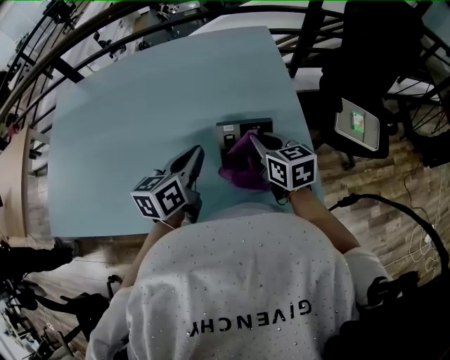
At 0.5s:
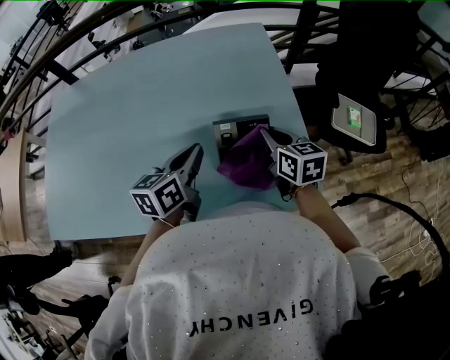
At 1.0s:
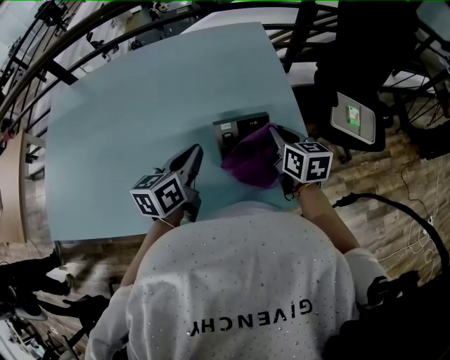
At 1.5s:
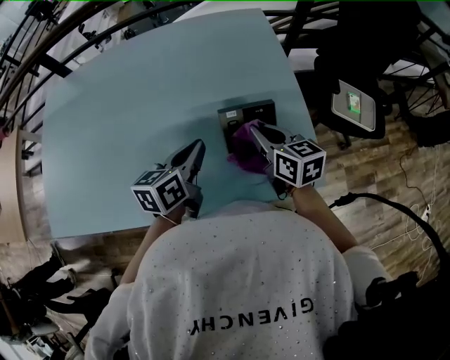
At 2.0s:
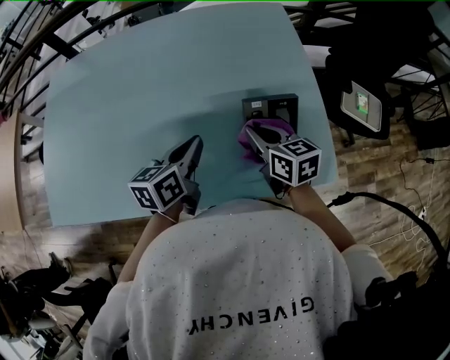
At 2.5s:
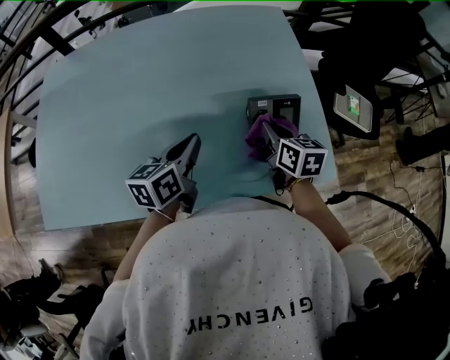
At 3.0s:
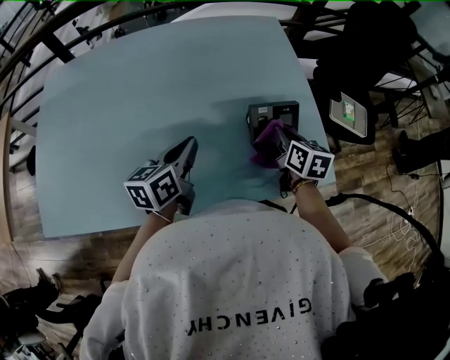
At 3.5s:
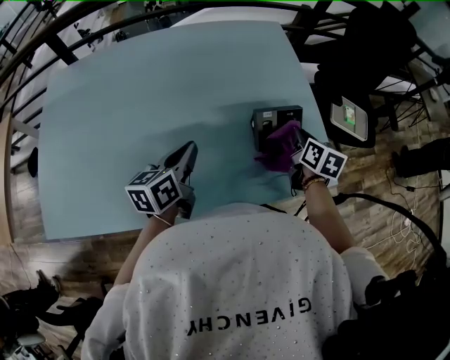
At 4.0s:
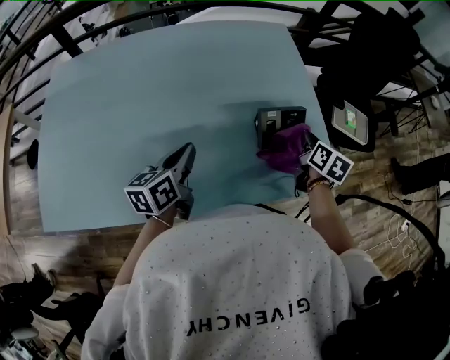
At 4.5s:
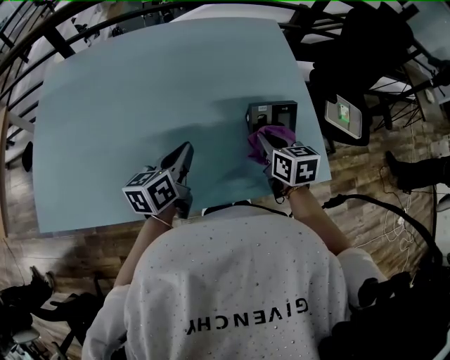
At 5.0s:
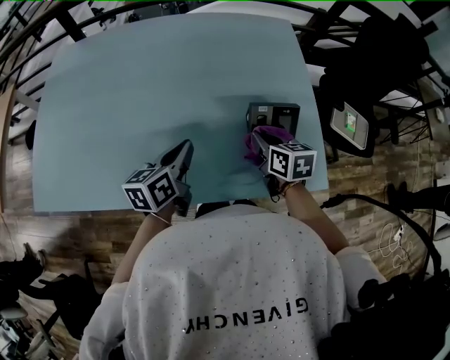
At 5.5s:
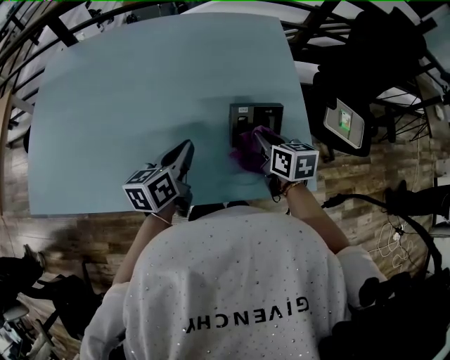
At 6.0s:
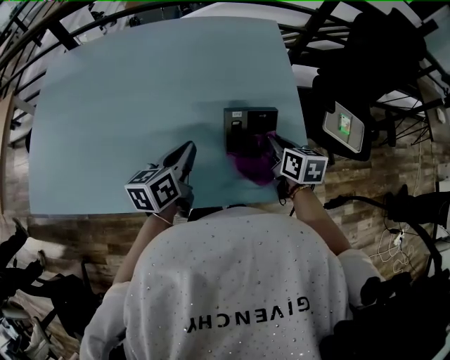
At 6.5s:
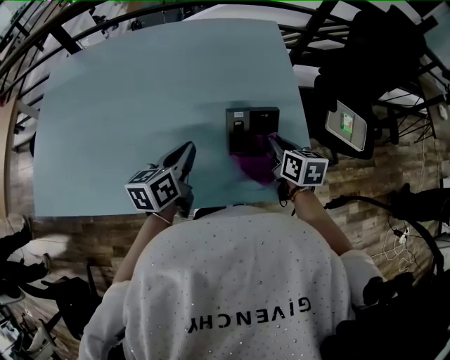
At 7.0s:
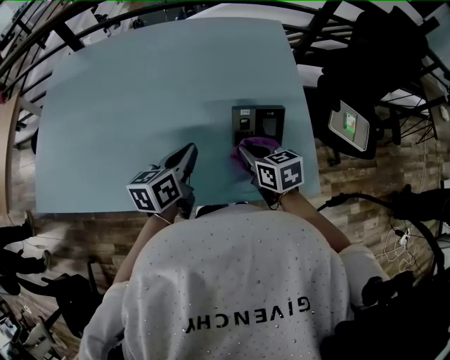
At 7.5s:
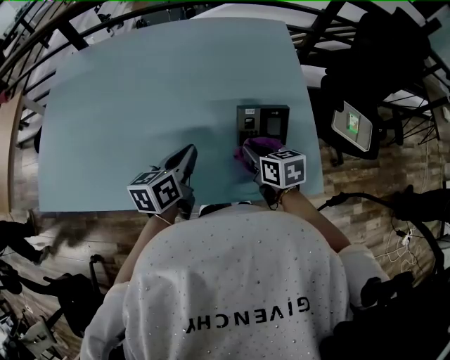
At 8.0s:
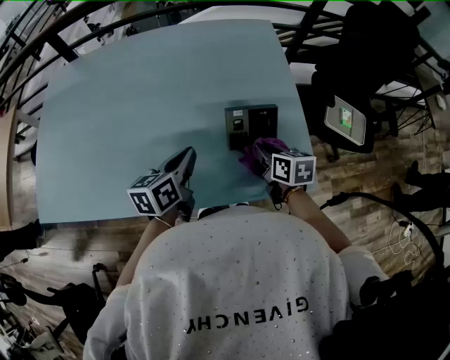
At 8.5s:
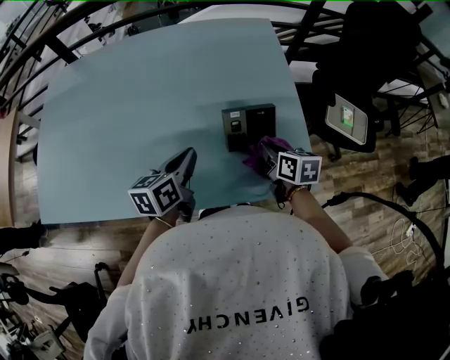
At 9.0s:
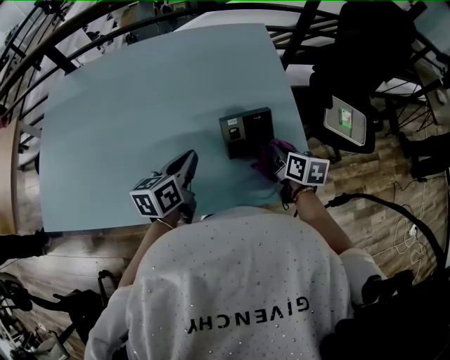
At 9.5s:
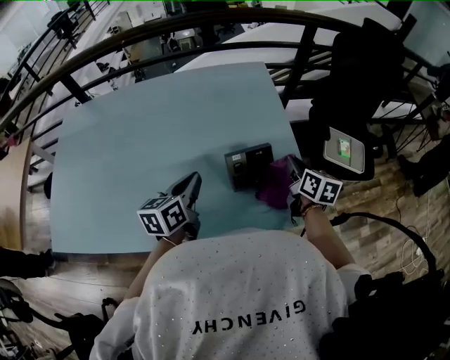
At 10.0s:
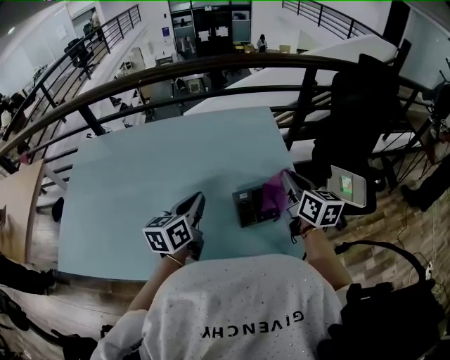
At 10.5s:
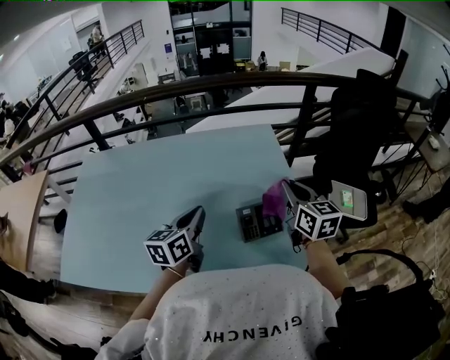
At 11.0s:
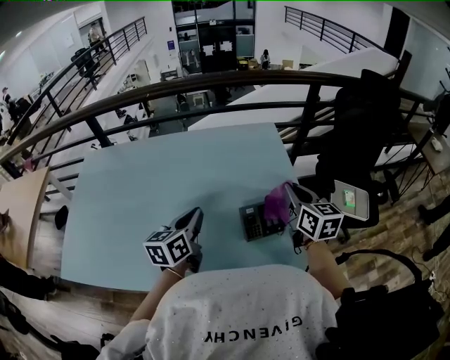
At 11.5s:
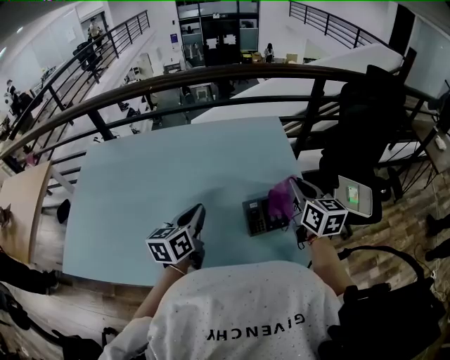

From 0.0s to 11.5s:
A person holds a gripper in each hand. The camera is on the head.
From 0.0s to 2.0s: Both grippers travel together to the left, roughly 10 cm.
From 2.0s to 4.0s: The right gripper goes some 15 cm to the right, and rotates approximately 40 degrees. The left gripper is displaced to the left by approximately 10 cm.
From 4.0s to 6.0s: The right gripper goes to the left and returns, about 15 cm each way, and swivels some 30 degrees. Meanwhile the left gripper heads to the right, covering approximately 10 cm.
From 6.0s to 7.5s: The right gripper heads to the left, covering some 10 cm.
From 7.5s to 9.5s: The right gripper goes approximately 20 cm to the right, and turns by approximately 30 degrees; the left gripper moves some 5 cm.
From 9.5s to 11.5s: The right gripper shifts approximately 15 cm upward and to the left, and rotates approximately 20 degrees. The left gripper ends up some 5 cm from where it was.

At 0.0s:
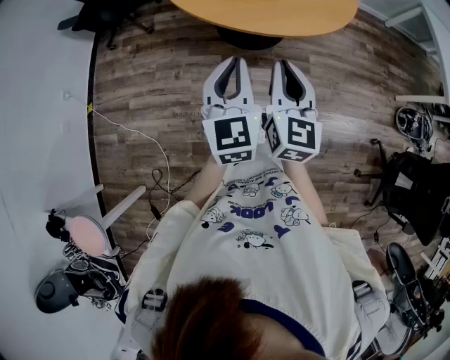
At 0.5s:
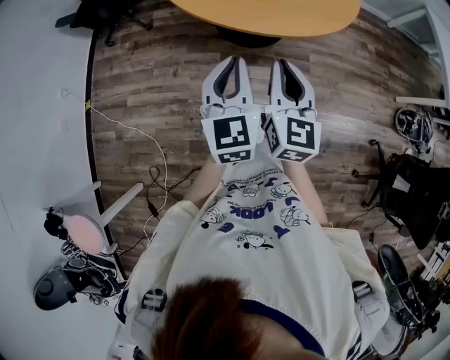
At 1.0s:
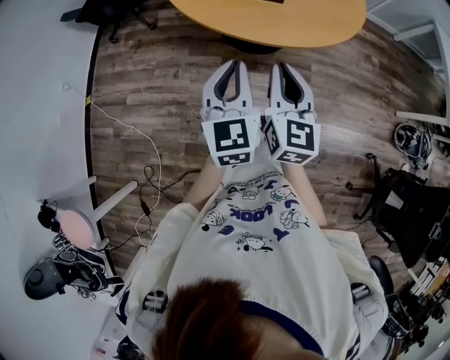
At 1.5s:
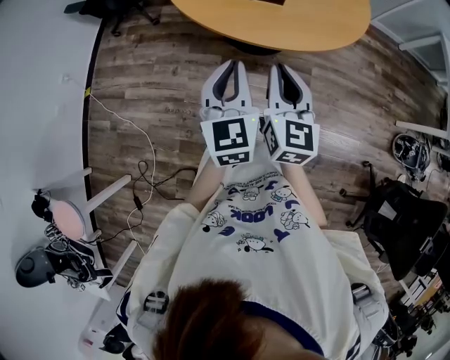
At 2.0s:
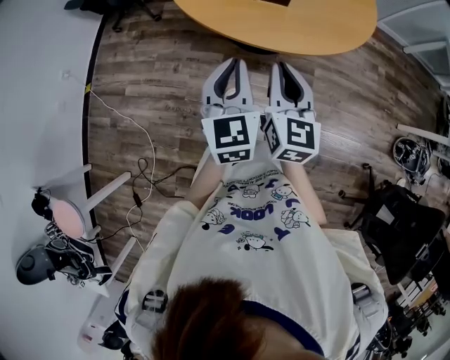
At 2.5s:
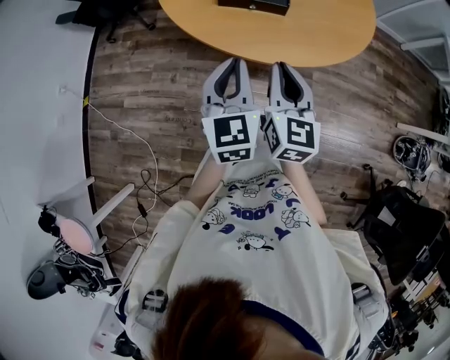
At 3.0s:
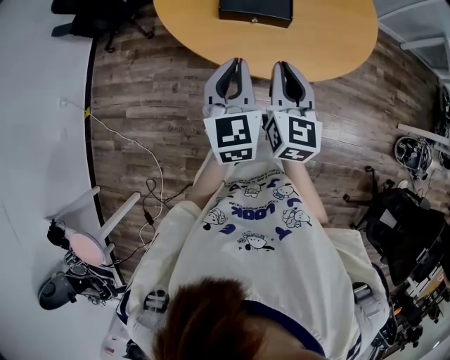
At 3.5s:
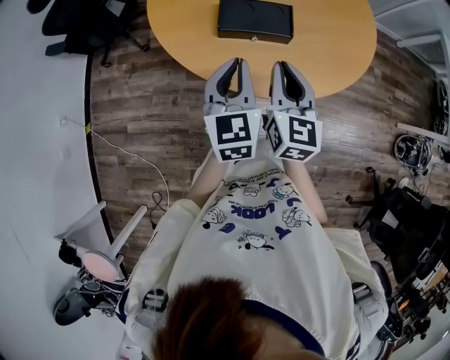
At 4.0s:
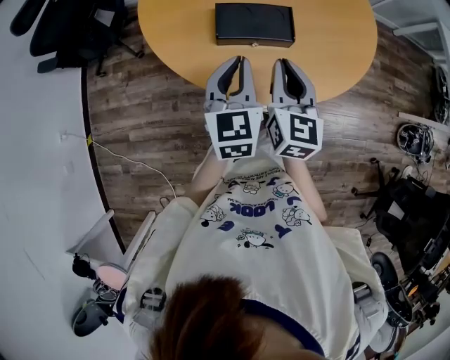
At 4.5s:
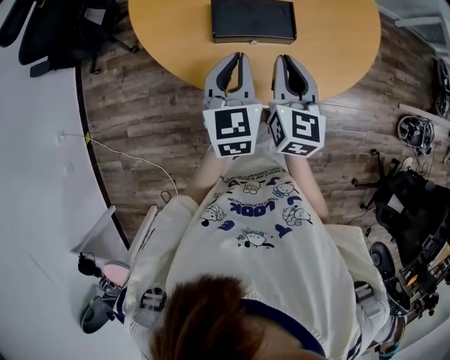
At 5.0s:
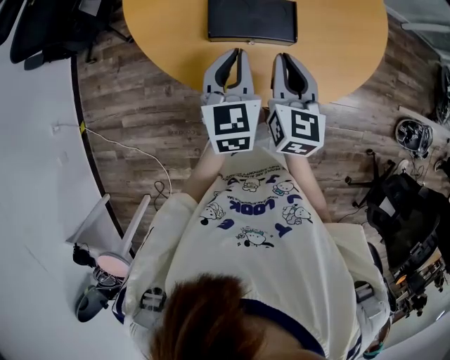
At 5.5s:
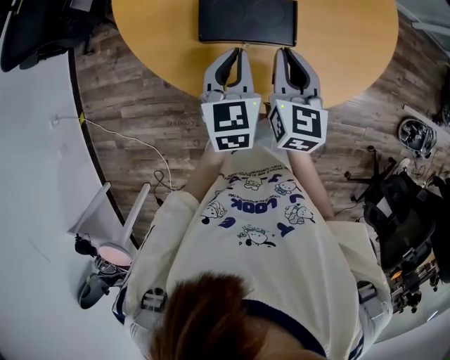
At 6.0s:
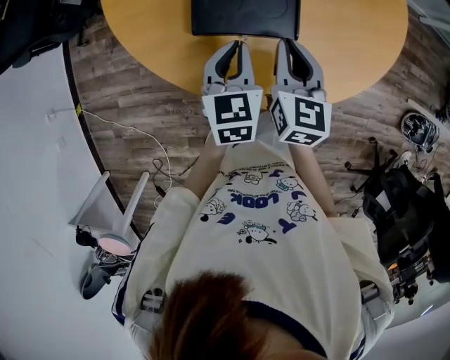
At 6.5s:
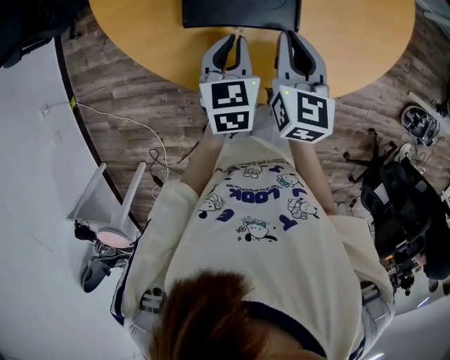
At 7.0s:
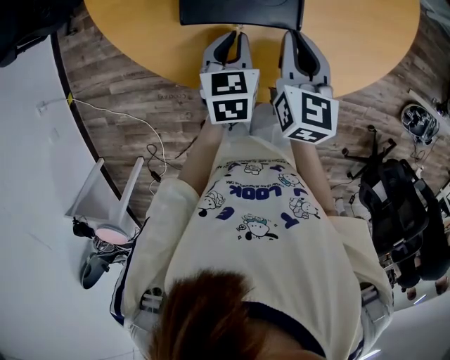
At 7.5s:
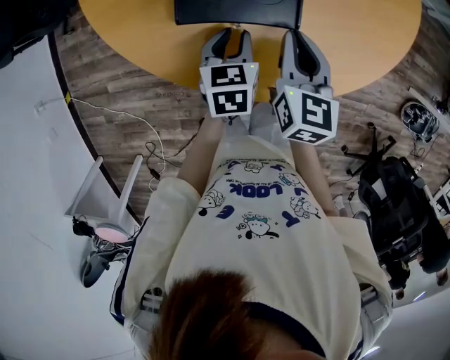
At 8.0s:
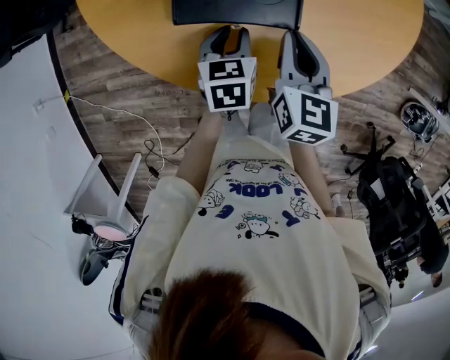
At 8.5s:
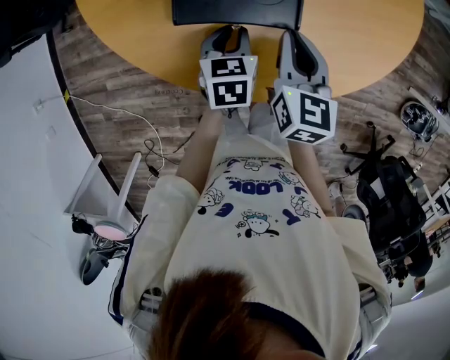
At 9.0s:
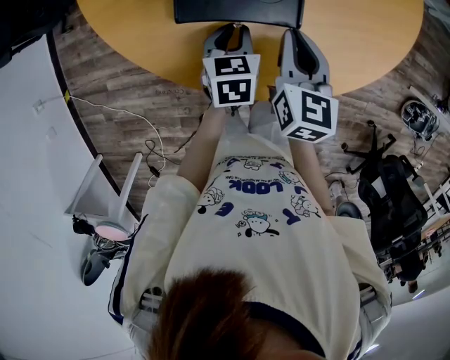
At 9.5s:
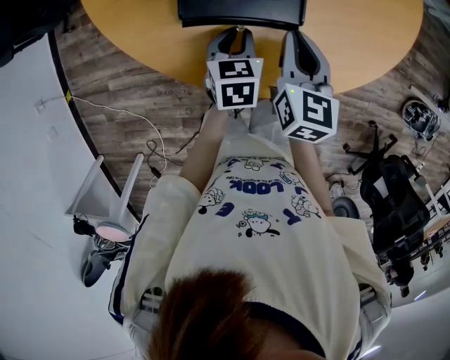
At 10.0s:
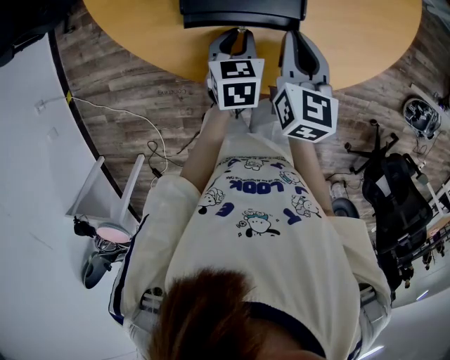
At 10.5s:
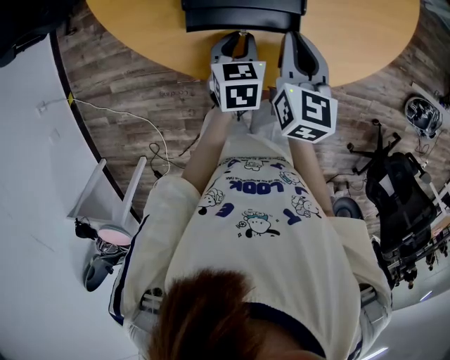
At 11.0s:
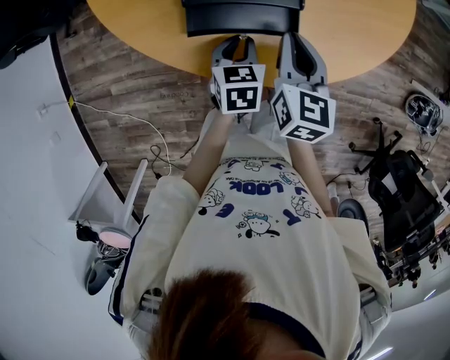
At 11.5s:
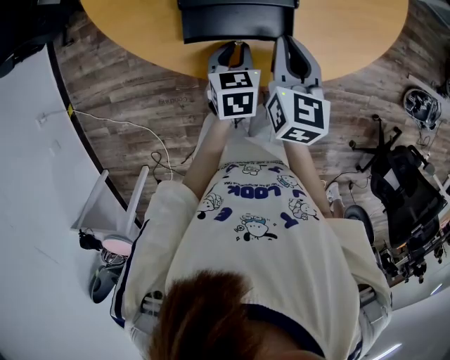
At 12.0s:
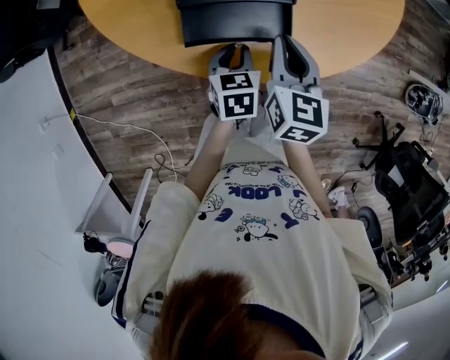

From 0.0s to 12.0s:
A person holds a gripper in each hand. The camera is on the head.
From 0.0s to 2.0s: The grippers both shift forward and to the right by about 10 cm.
From 2.0s to 4.0s: The two grippers go some 25 cm forward.
From 4.0s to 6.0s: The right gripper travels forward and downward by approximately 15 cm; the left gripper goes about 15 cm downward and forward.
From 6.0s to 8.0s: The left gripper moves downward, some 10 cm, and opens.
From 8.0s to 10.0s: The grippers make only small movements.
From 10.0s to 12.0s: Both grippers move backward, some 5 cm.

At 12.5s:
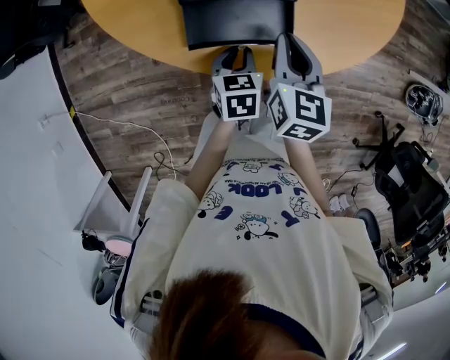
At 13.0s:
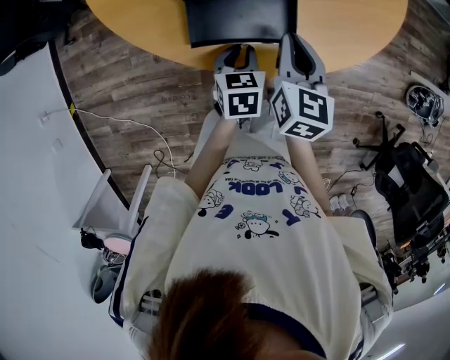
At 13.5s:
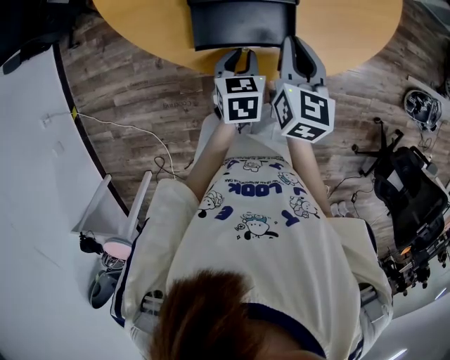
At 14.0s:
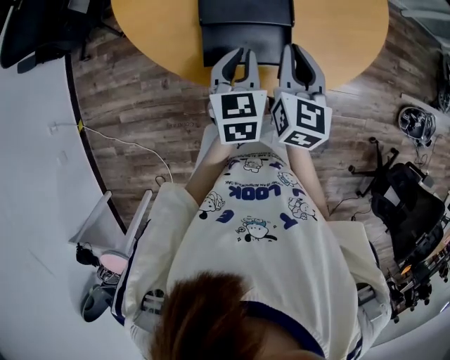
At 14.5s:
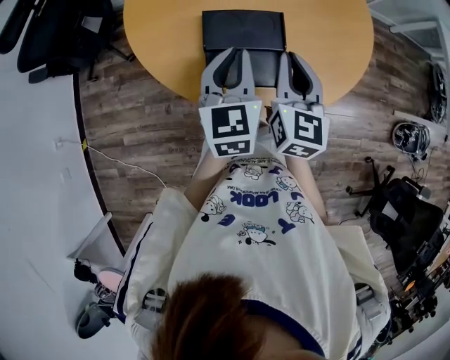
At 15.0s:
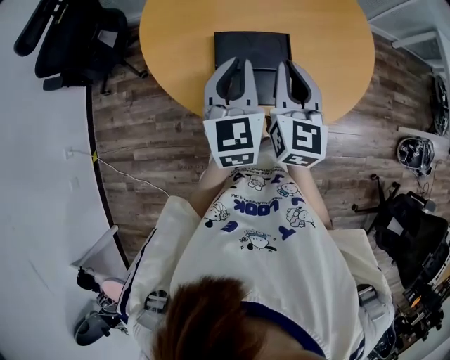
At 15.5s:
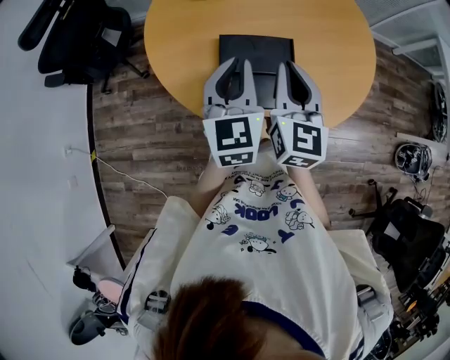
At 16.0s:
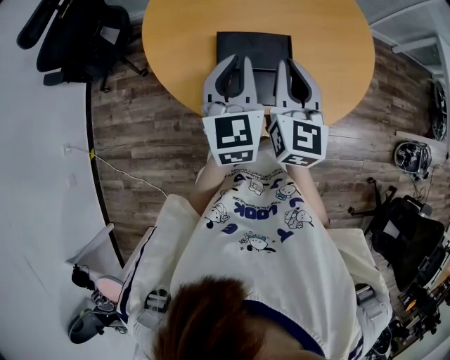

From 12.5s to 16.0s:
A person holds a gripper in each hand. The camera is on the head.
From 12.5s to 14.5s: The right gripper is displaced upward by roughly 15 cm; the left gripper heads upward, covering roughly 25 cm, and angles its fingers upward, by some 30 degrees.
From 14.5s to 16.0s: The right gripper ends up roughly 5 cm from where it was, while the left gripper changes place by about 5 cm.
